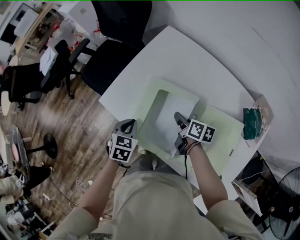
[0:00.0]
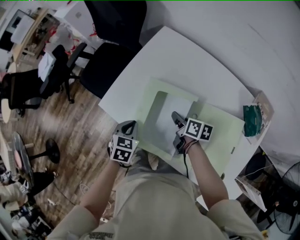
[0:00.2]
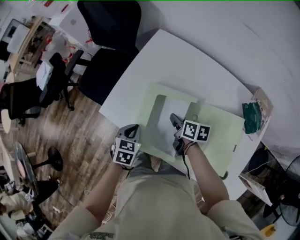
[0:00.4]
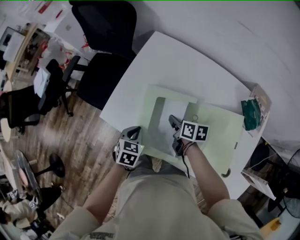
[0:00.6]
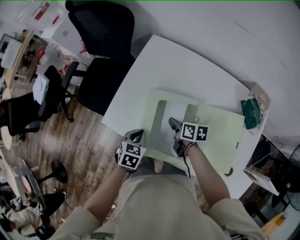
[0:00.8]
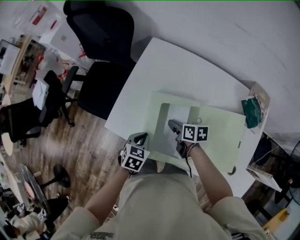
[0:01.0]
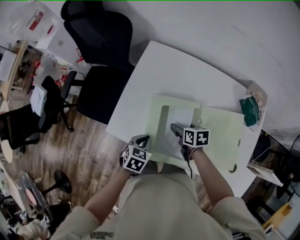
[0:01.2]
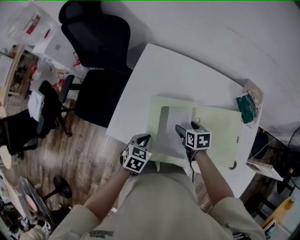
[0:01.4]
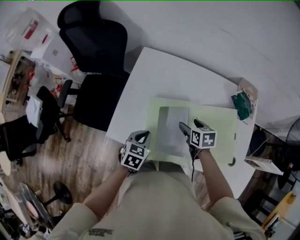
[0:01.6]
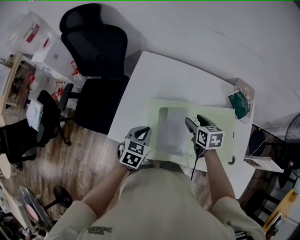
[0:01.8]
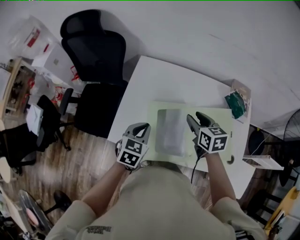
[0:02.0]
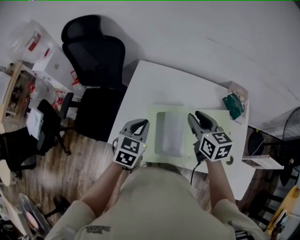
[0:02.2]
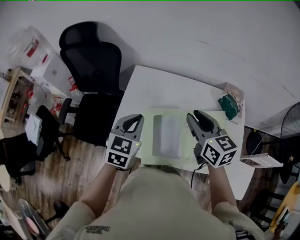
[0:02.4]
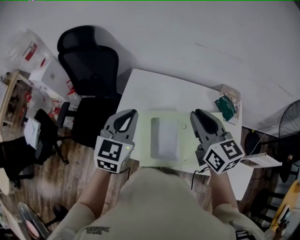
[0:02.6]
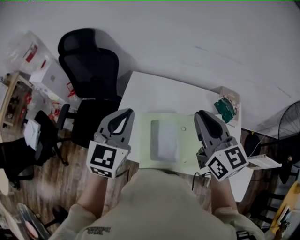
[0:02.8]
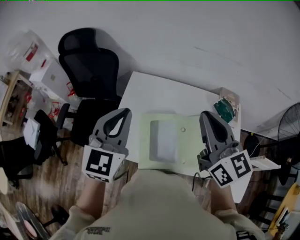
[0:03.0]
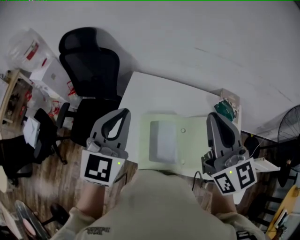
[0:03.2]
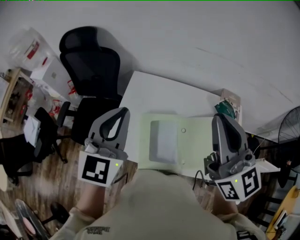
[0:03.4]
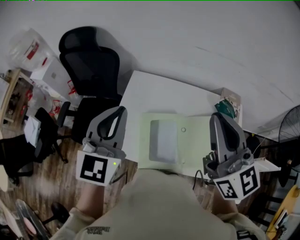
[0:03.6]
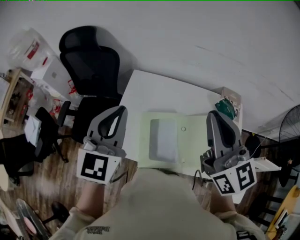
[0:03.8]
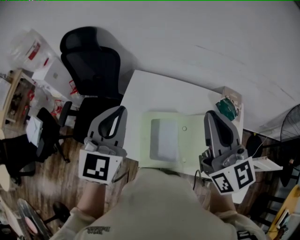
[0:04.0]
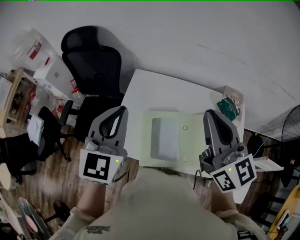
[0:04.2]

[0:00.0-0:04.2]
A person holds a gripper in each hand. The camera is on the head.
0:00.0 to 0:01.4: The right gripper swivels roughly 30 degrees, and opens up. The left gripper swivels some 30 degrees.
0:01.4 to 0:02.8: Both grippers travel together upward, approximately 35 cm. The right gripper tips its fingers upward by some 50 degrees, and closes up, while the left gripper tips its fingers upward by roughly 40 degrees.
0:02.8 to 0:04.2: The right gripper travels upward by some 5 cm.

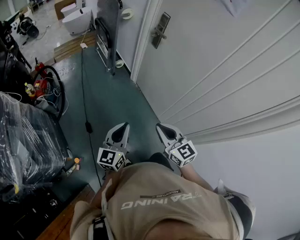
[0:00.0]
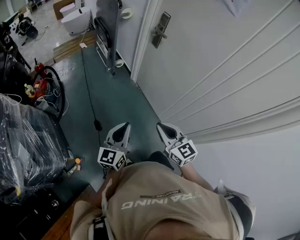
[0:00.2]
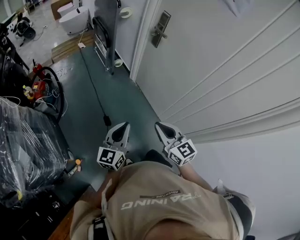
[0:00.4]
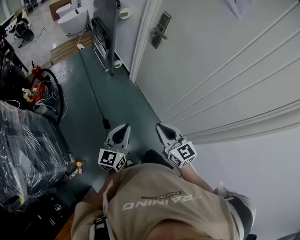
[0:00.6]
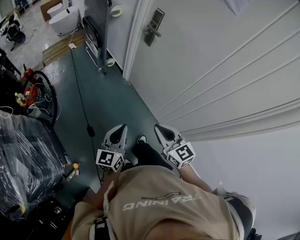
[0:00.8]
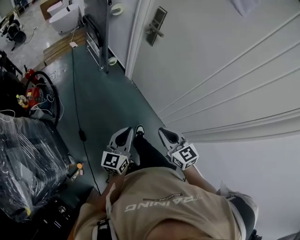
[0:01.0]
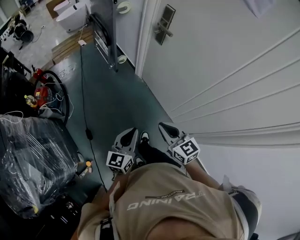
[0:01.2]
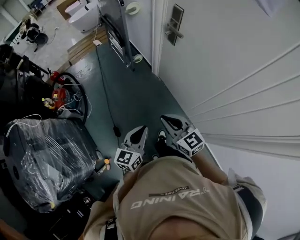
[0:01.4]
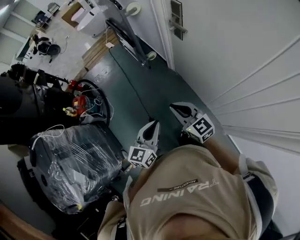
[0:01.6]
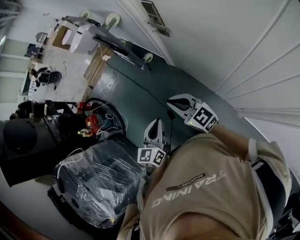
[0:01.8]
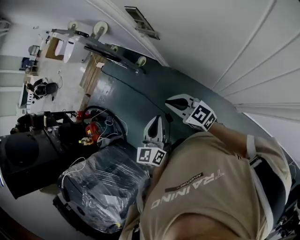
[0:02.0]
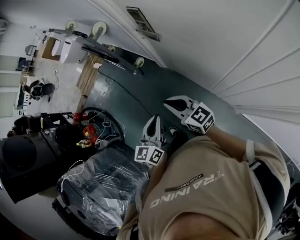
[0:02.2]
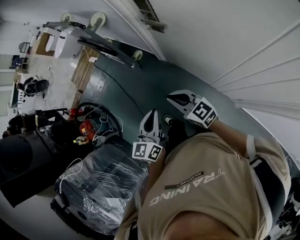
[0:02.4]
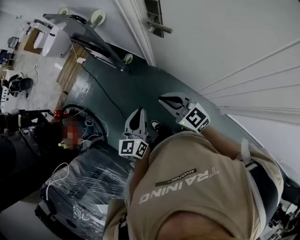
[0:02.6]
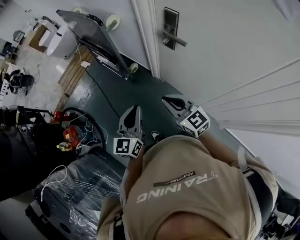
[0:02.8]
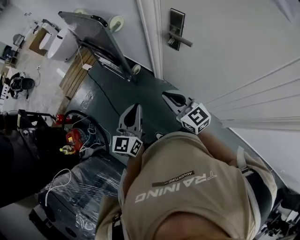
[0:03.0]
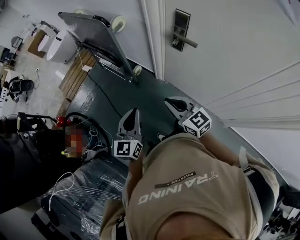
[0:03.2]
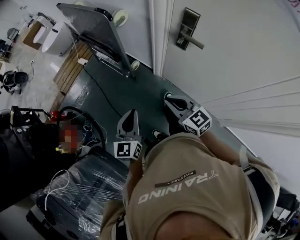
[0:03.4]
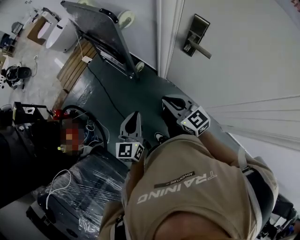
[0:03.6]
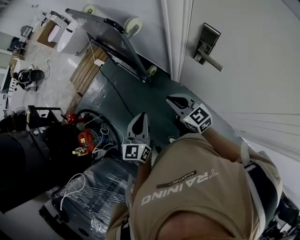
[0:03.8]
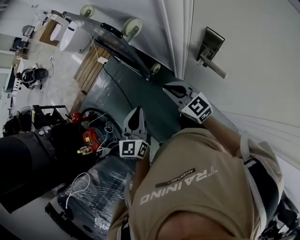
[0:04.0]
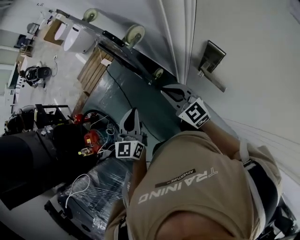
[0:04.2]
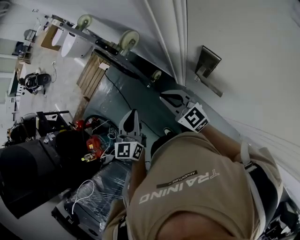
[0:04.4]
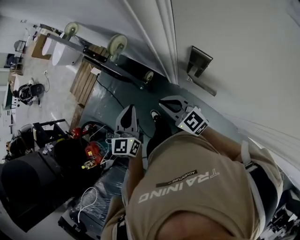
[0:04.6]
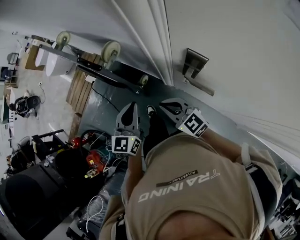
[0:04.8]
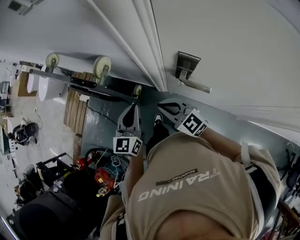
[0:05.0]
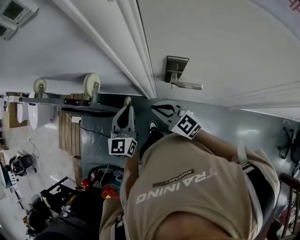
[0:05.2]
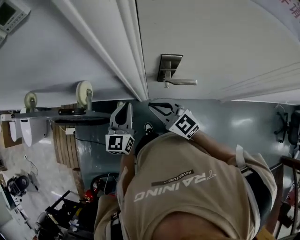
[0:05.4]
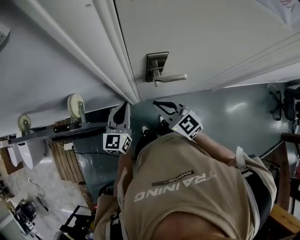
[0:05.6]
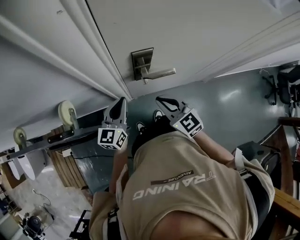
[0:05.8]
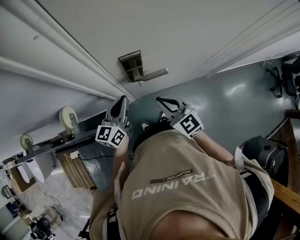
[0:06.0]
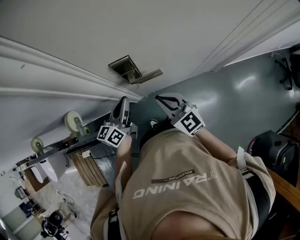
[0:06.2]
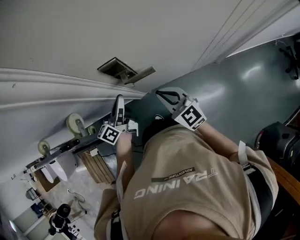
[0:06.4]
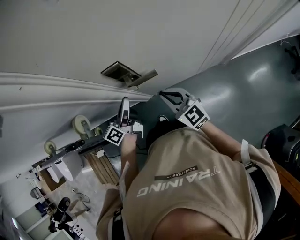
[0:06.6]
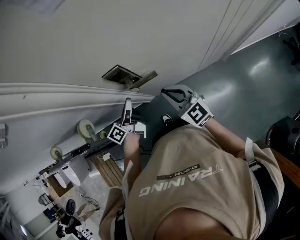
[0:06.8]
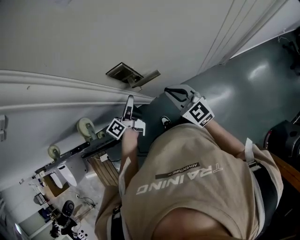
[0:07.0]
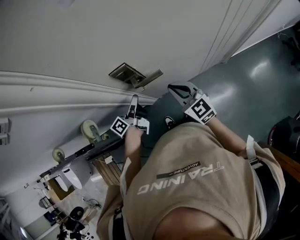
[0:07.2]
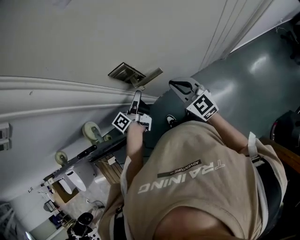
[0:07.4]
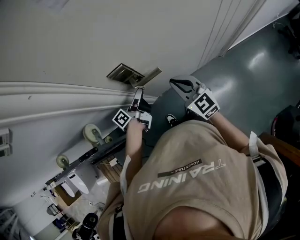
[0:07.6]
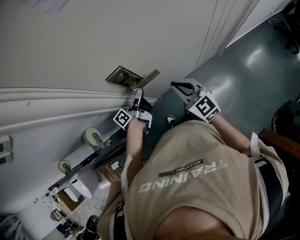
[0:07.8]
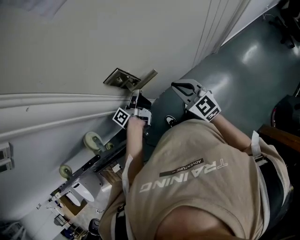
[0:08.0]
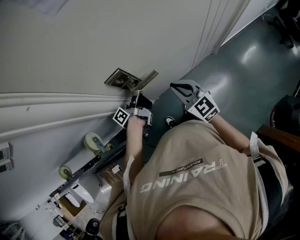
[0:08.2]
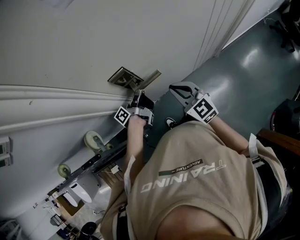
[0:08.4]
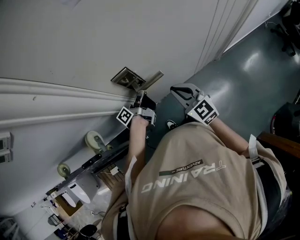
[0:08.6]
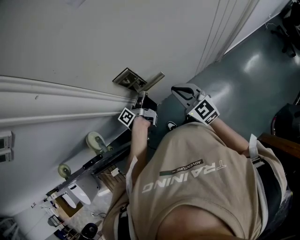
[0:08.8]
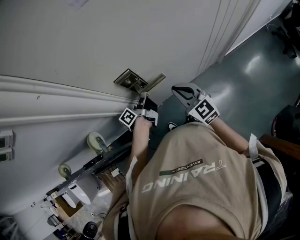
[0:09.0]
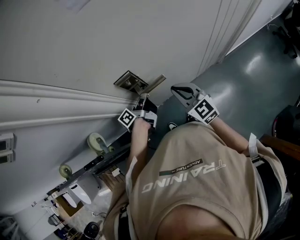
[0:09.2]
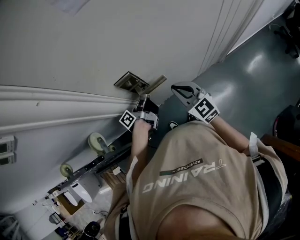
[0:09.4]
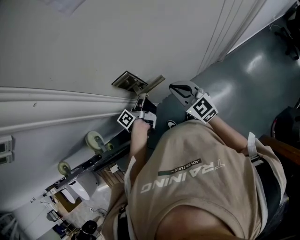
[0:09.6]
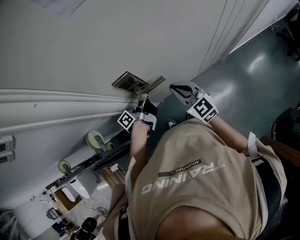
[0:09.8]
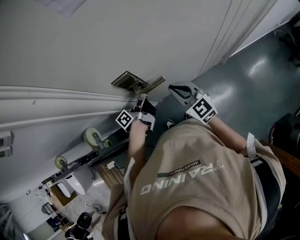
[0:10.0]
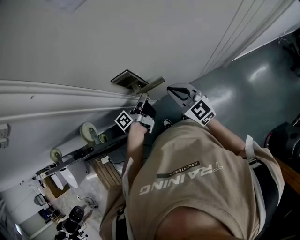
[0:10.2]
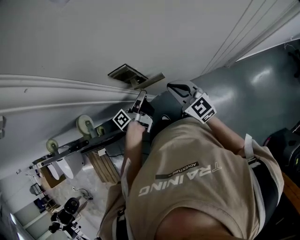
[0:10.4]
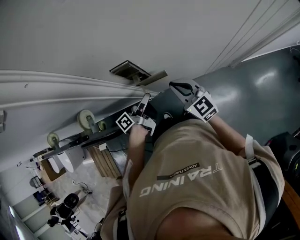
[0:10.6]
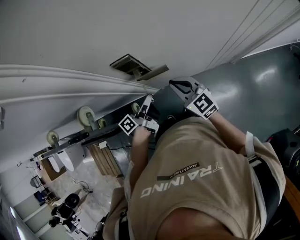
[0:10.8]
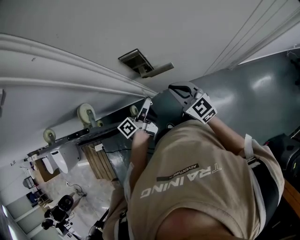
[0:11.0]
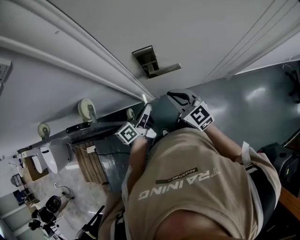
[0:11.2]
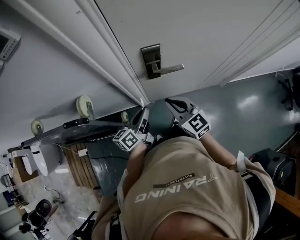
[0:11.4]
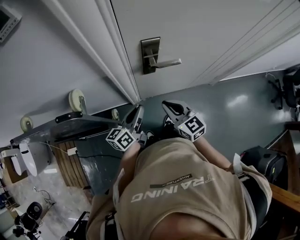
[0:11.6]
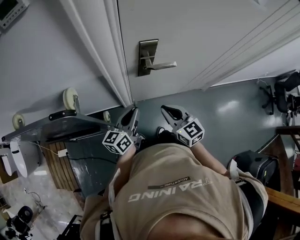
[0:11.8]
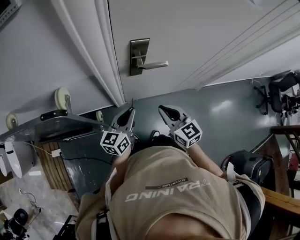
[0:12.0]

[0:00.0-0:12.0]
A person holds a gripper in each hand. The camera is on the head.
0:00.0 to 0:01.6: Both grippers travel together forward, some 20 cm.
0:01.6 to 0:03.0: The grippers both shift forward and to the left by about 25 cm.
0:03.0 to 0:04.4: Both grippers travel together forward, some 25 cm.
0:04.4 to 0:06.0: The left gripper moves roughly 25 cm, and rotates roughly 70 degrees; the right gripper moves approximately 15 cm, and rotates some 60 degrees.
0:06.0 to 0:07.6: The left gripper shifts some 10 cm downward, to the right and forward, twists roughly 50 degrees counterclockwise, seen from behind, and opens, while the right gripper goes some 10 cm to the right.
0:07.6 to 0:09.0: The left gripper closes up.
0:09.0 to 0:10.4: The grippers stay close to where they were, moving slightly.
0:10.4 to 0:12.0: Both grippers travel together backward and to the left, about 15 cm. The left gripper twists approximately 60 degrees clockwise, seen from behind.

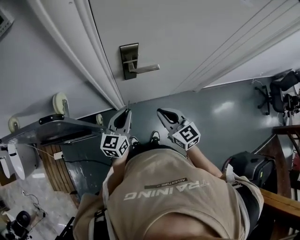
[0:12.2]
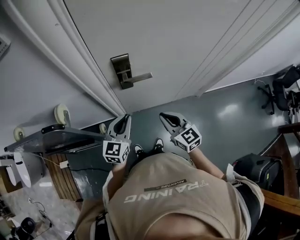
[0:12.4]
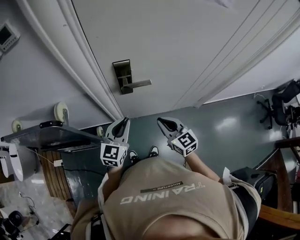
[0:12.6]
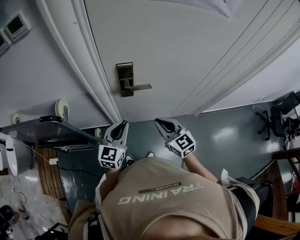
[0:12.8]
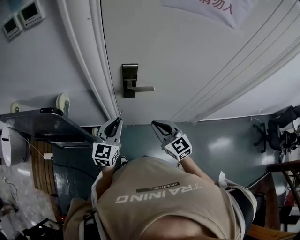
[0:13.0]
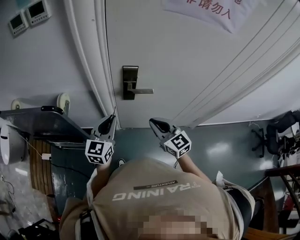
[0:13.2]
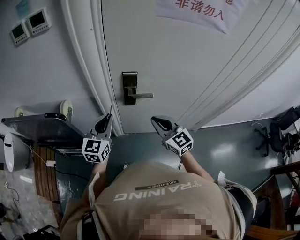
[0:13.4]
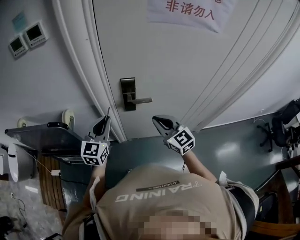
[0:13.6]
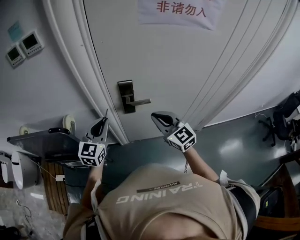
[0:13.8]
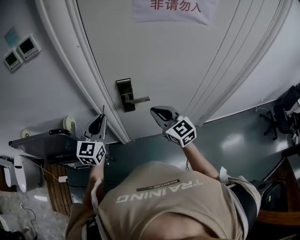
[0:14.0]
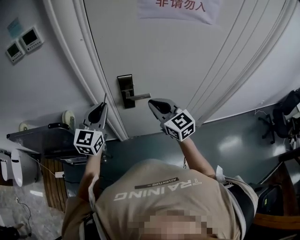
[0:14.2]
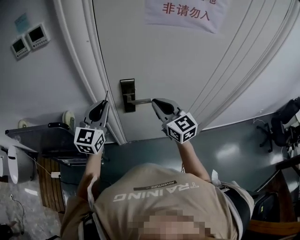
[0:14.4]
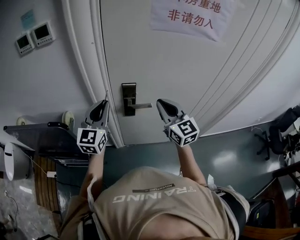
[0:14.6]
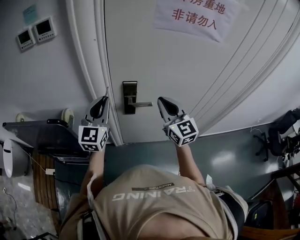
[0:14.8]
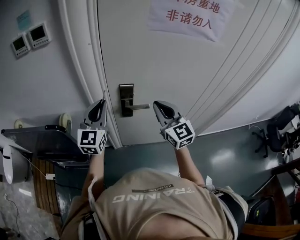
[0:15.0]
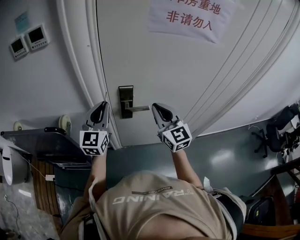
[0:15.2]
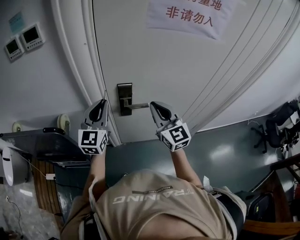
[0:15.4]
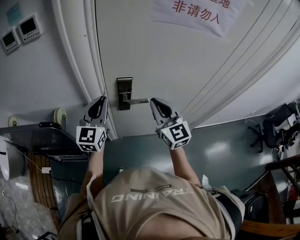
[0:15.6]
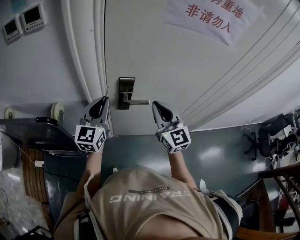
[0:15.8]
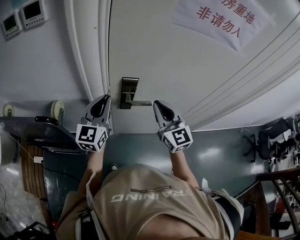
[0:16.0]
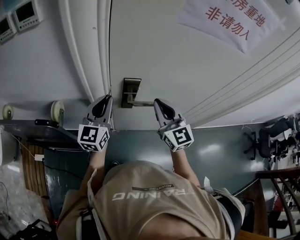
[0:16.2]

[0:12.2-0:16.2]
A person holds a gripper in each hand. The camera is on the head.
0:12.2 to 0:13.6: The grippers both shift upward by roughly 10 cm. The left gripper turns by approximately 20 degrees.
0:13.6 to 0:14.8: Both grippers move upward, roughly 10 cm.
0:14.8 to 0:16.2: The left gripper moves downward and forward, about 10 cm. The right gripper is displaced forward by about 5 cm.

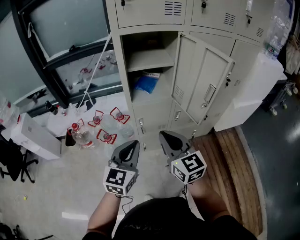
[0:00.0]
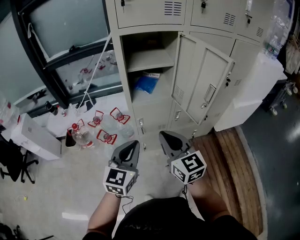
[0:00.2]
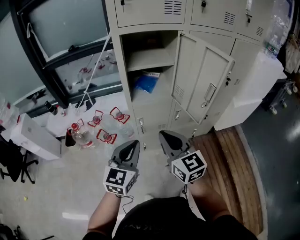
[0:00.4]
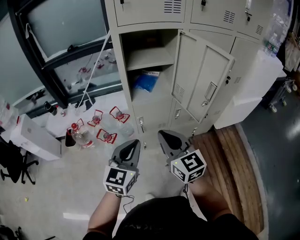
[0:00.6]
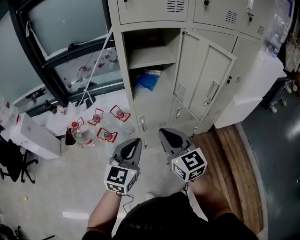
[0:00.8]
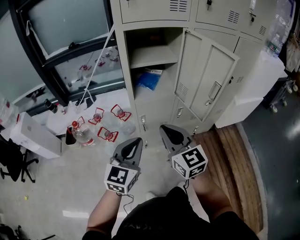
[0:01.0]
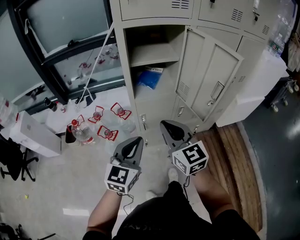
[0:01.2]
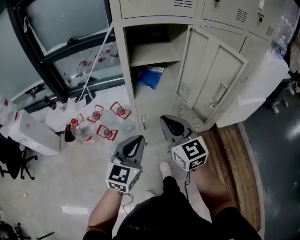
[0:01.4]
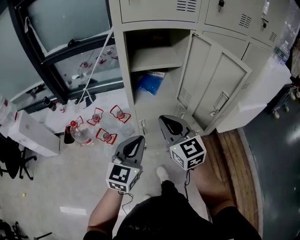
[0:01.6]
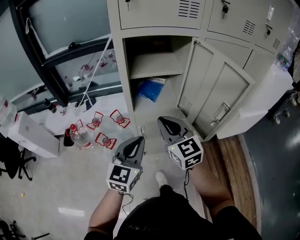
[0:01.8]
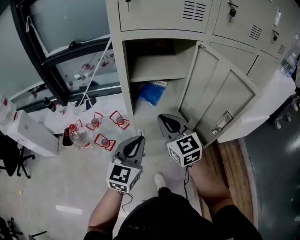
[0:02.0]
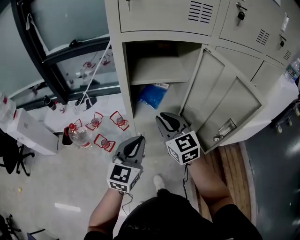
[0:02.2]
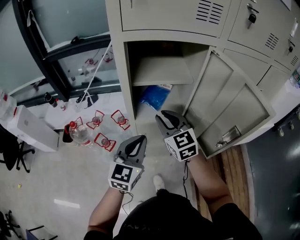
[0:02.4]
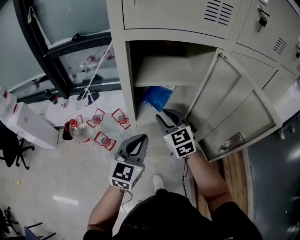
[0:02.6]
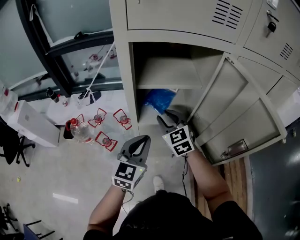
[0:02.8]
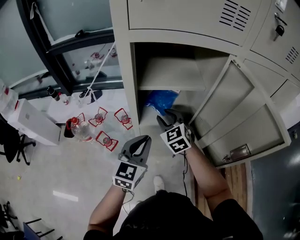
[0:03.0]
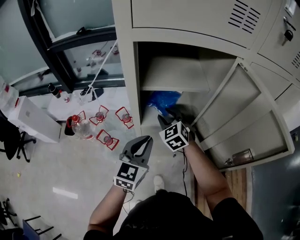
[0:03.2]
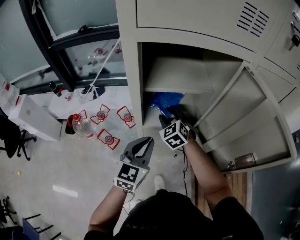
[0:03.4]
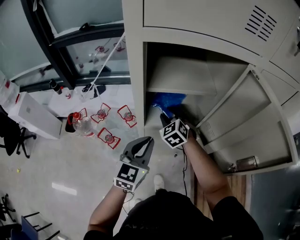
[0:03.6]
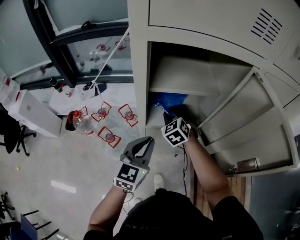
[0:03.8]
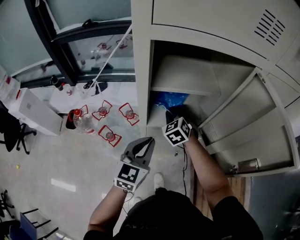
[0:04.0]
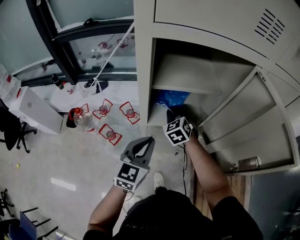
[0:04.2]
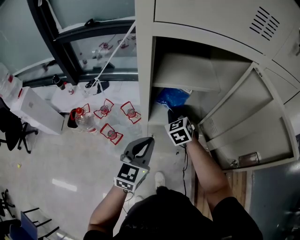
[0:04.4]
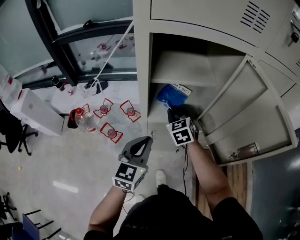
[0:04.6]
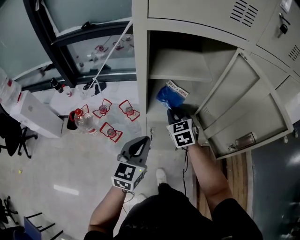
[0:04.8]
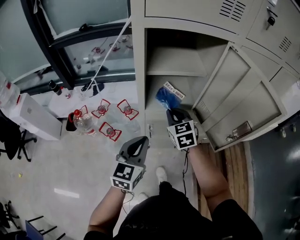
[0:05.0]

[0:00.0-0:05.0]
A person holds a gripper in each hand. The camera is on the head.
0:00.0 to 0:01.6: The right gripper shifts about 10 cm forward. The left gripper travels forward by roughly 5 cm.
0:01.6 to 0:03.4: The left gripper moves forward, approximately 15 cm. Meanwhile the right gripper travels forward and downward by about 30 cm, changes its angle by some 40 degrees, and opens its fingers.
0:03.4 to 0:05.0: Both grippers move backward, roughly 10 cm. The right gripper rotates about 20 degrees, and closes its fingers.
